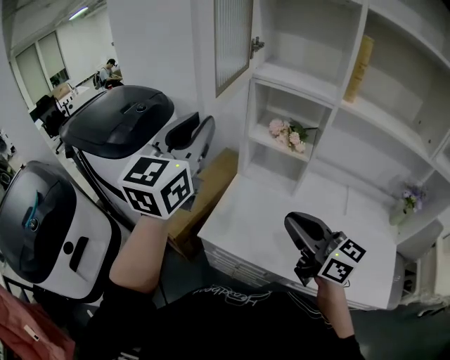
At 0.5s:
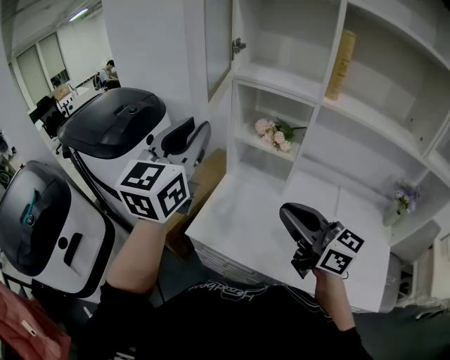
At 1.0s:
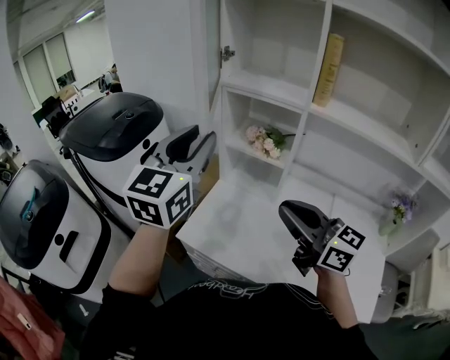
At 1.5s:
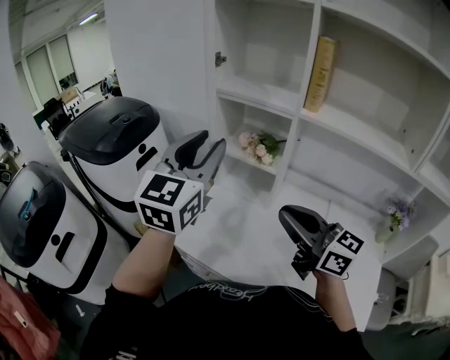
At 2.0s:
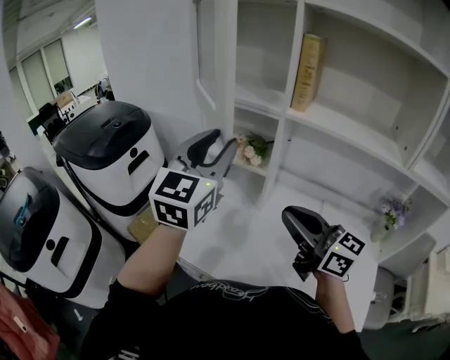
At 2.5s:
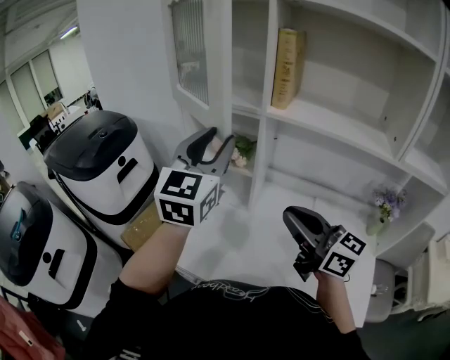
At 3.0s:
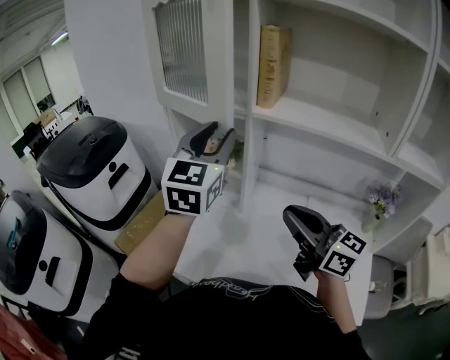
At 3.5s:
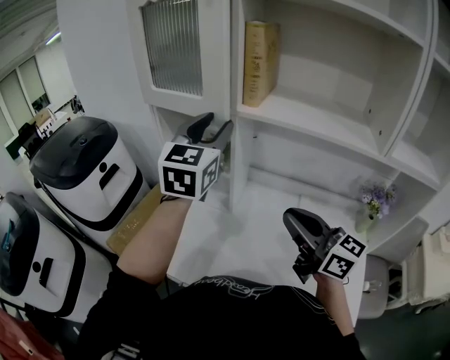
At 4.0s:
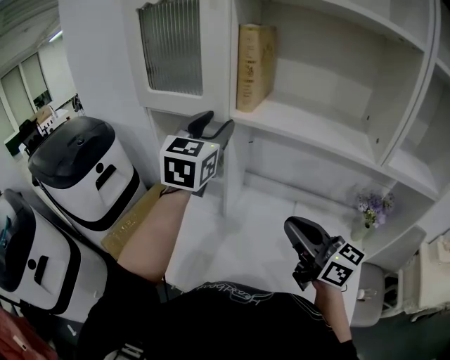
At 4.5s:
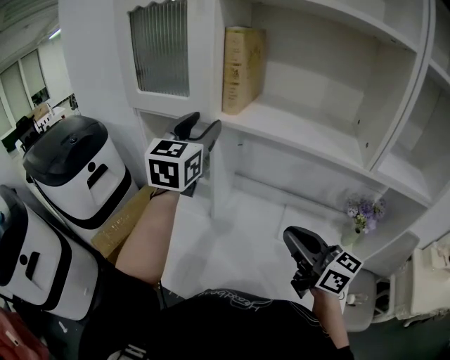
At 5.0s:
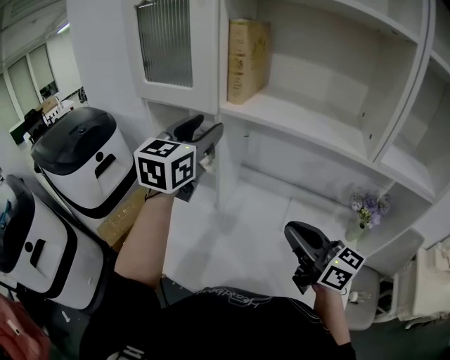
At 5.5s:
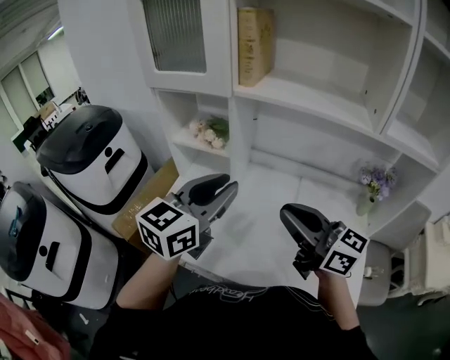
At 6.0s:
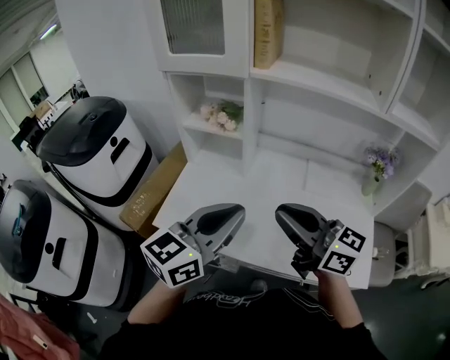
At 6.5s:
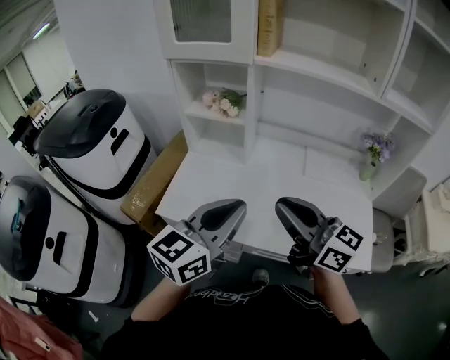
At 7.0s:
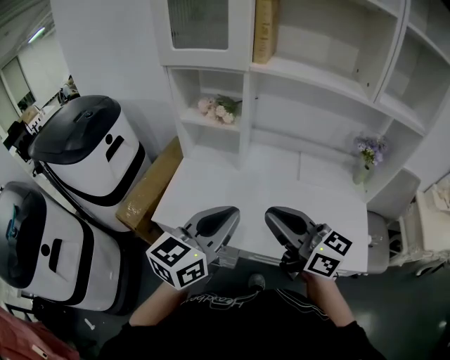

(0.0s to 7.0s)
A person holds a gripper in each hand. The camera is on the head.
0.0s - 2.0s: Both grippers travel together to the right, about 20 cm.
2.0s - 3.5s: The right gripper heads to the right, covering roughly 10 cm; the left gripper is displaced to the right and forward by about 15 cm.
3.5s - 5.0s: The right gripper moves to the right, some 5 cm.
5.0s - 7.0s: The left gripper goes some 35 cm backward and downward, turns by approximately 30 degrees, and closes up. Meanwhile the right gripper moves to the left and backward, roughly 25 cm.

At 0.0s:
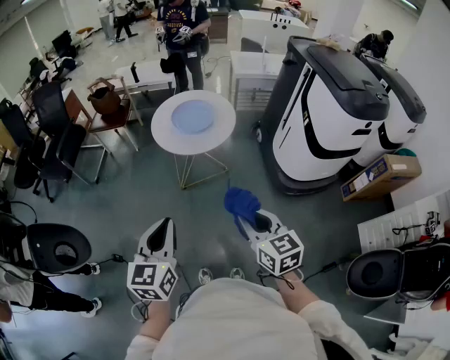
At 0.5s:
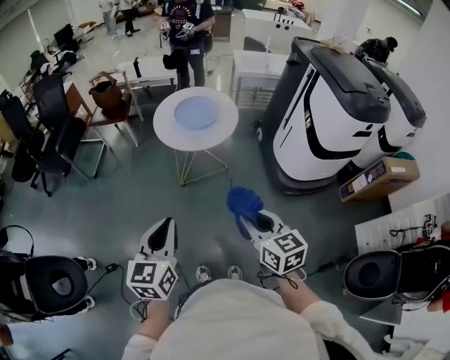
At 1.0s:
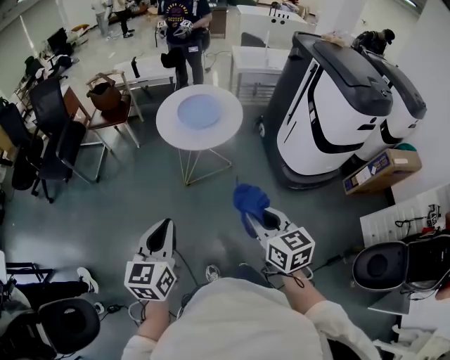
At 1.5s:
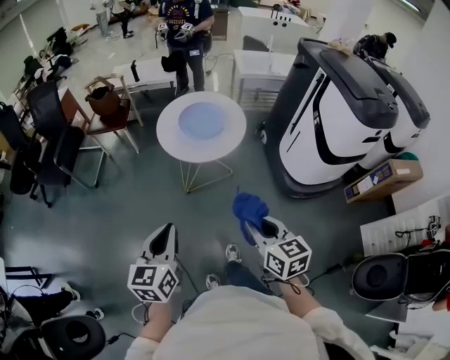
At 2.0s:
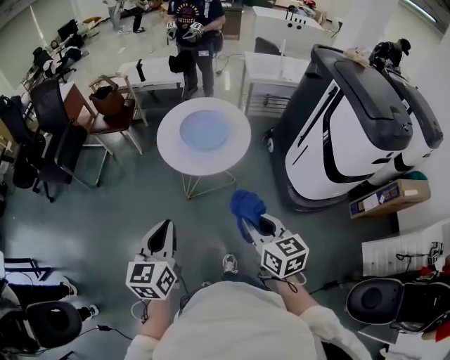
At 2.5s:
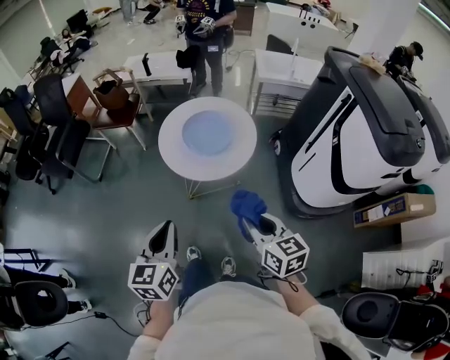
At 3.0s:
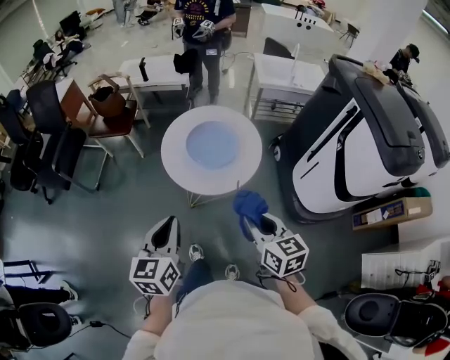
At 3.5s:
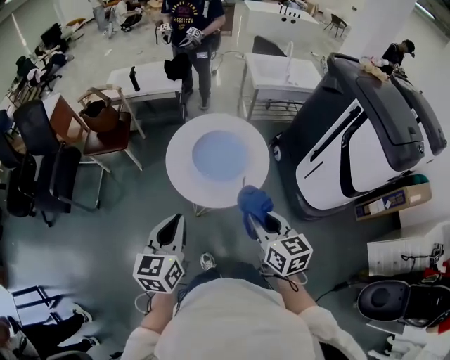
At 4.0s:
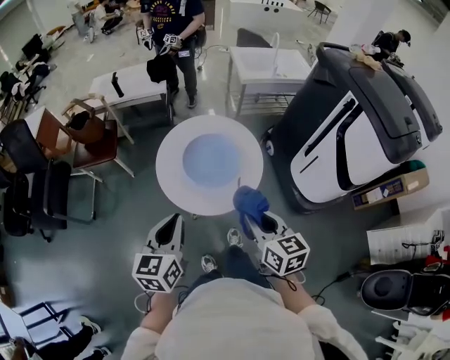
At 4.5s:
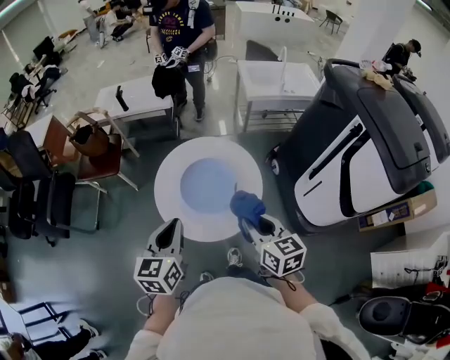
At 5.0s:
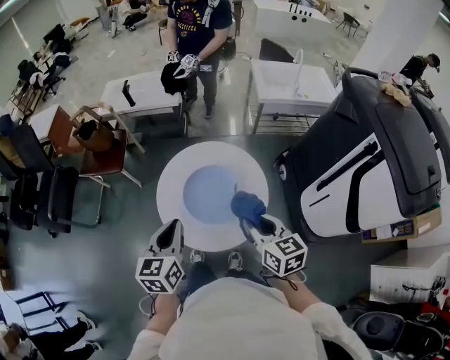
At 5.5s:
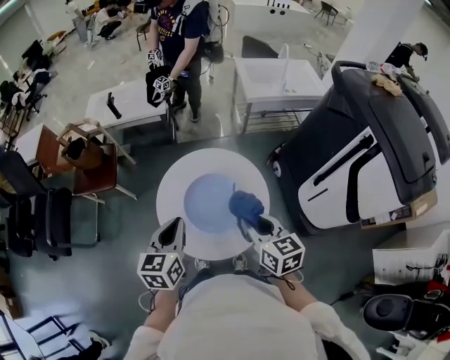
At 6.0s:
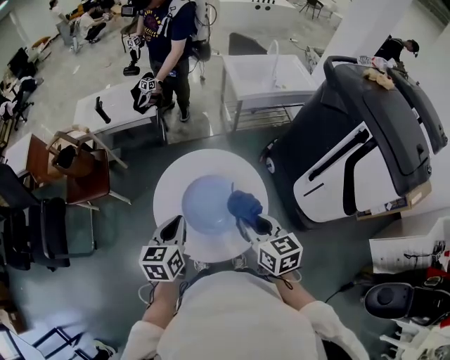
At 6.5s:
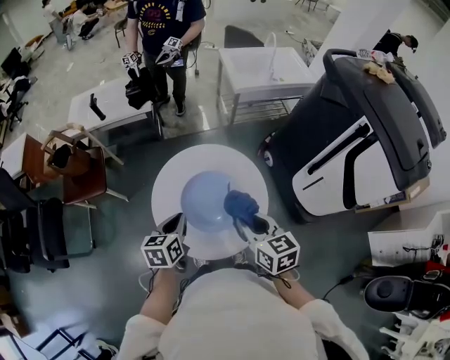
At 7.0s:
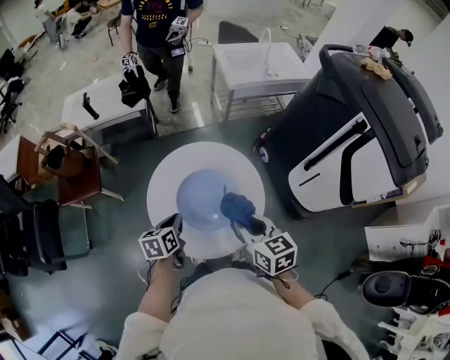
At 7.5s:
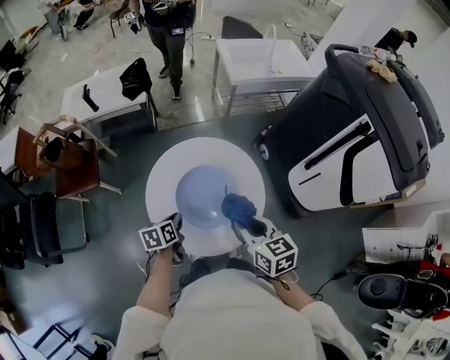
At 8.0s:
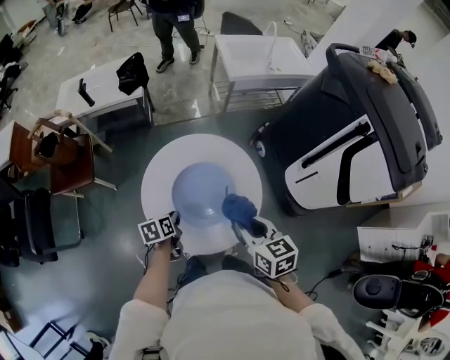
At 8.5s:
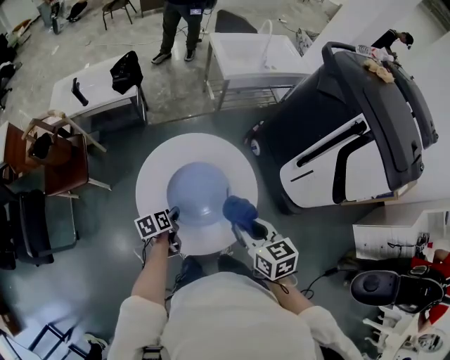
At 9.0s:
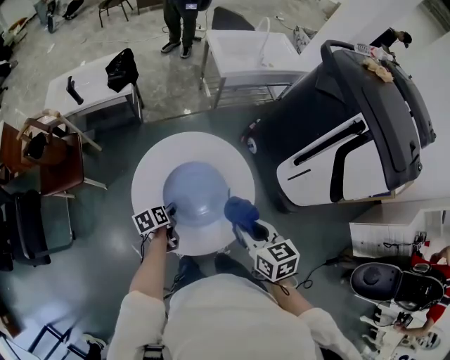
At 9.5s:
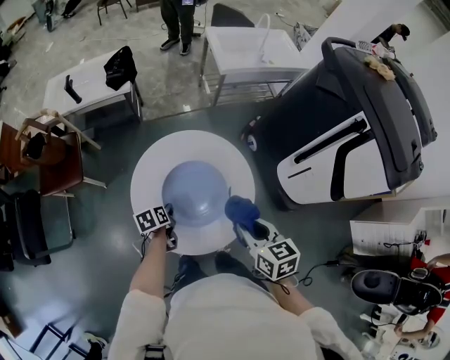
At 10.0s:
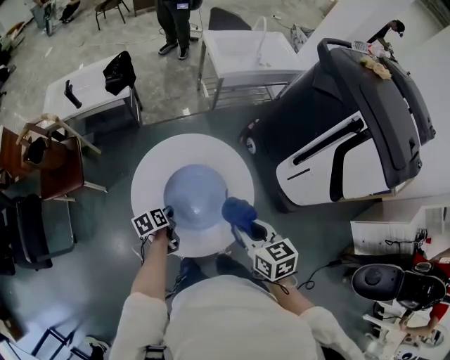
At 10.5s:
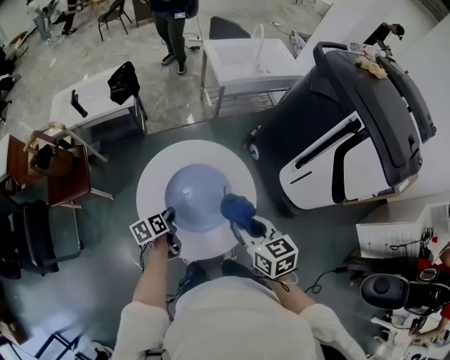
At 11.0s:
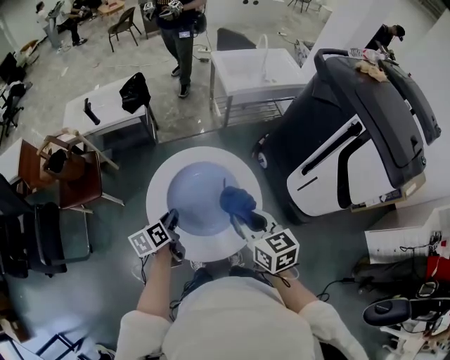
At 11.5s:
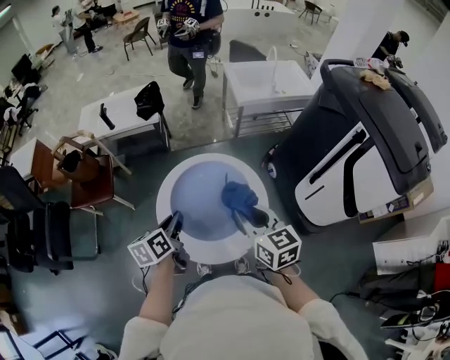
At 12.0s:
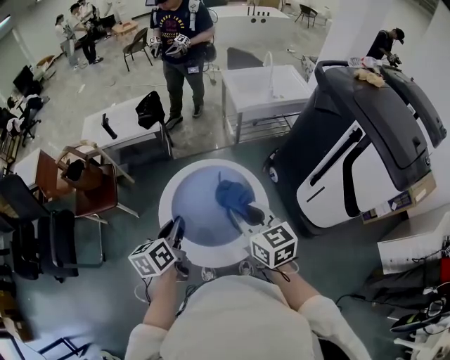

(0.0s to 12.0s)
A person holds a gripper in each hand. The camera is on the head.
0.0s - 2.0s: Both grippers travel together forward, about 15 cm.
2.0s - 4.0s: Both grippers travel together forward, some 25 cm.
4.0s - 6.0s: Both grippers travel together forward, some 20 cm.
6.0s - 8.0s: The left gripper goes approximately 20 cm downward, and changes its angle by roughly 30 degrees.
8.0s - 10.0s: The left gripper opens and closes again.
10.0s - 12.0s: The right gripper heads upward, covering approximately 10 cm, and changes its angle by approximately 20 degrees. Meanwhile the left gripper is displaced upward by about 25 cm, and changes its angle by about 30 degrees.

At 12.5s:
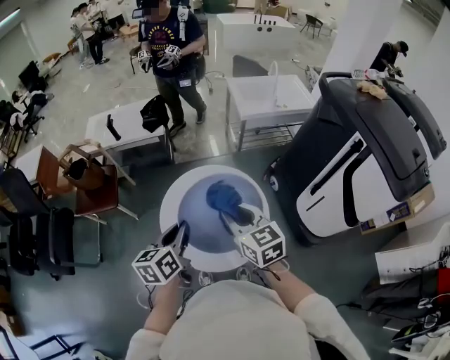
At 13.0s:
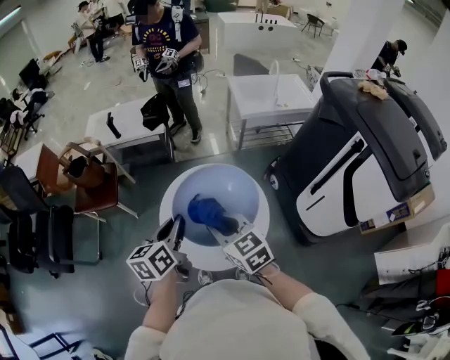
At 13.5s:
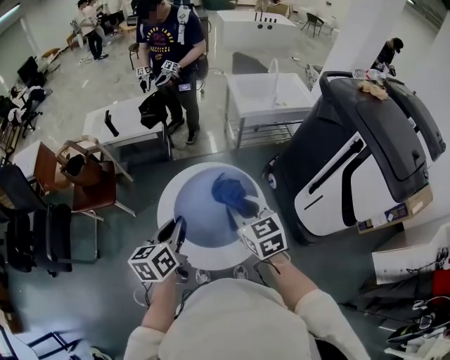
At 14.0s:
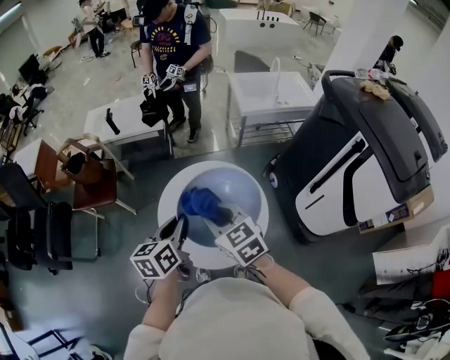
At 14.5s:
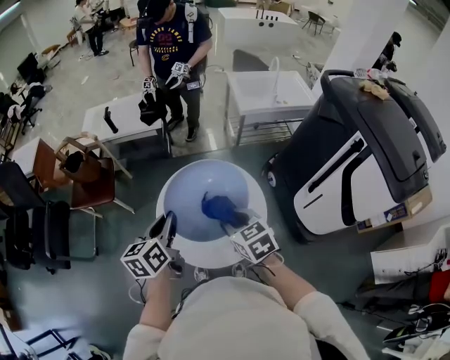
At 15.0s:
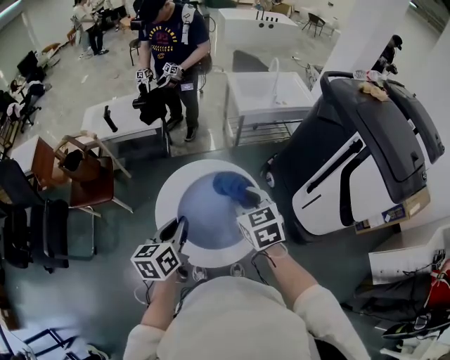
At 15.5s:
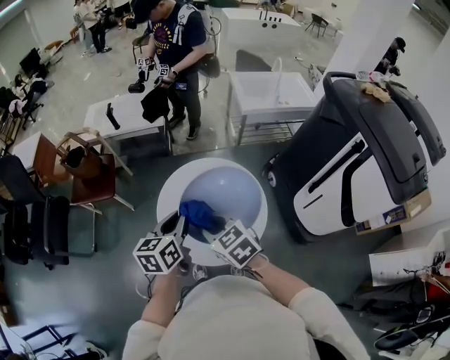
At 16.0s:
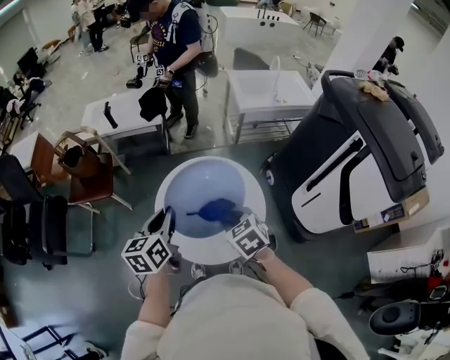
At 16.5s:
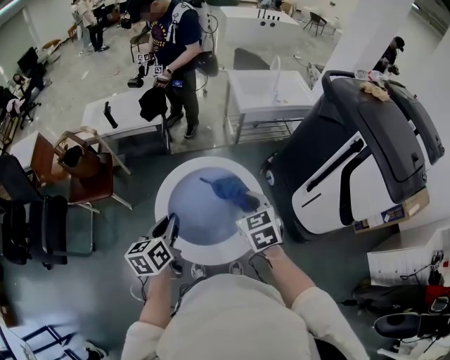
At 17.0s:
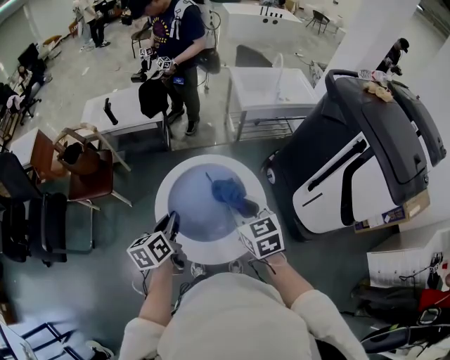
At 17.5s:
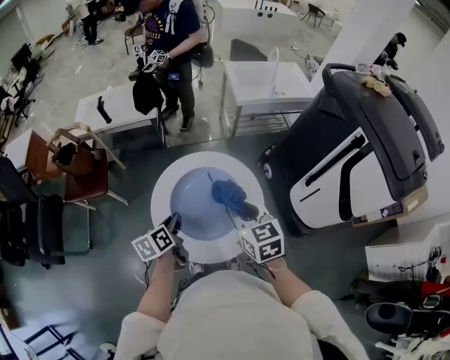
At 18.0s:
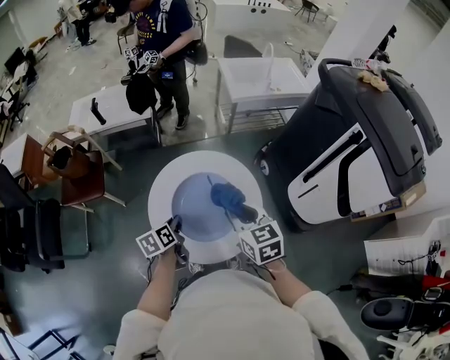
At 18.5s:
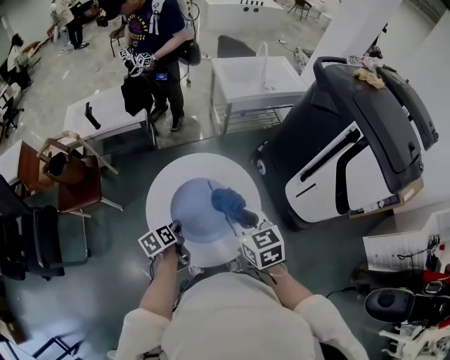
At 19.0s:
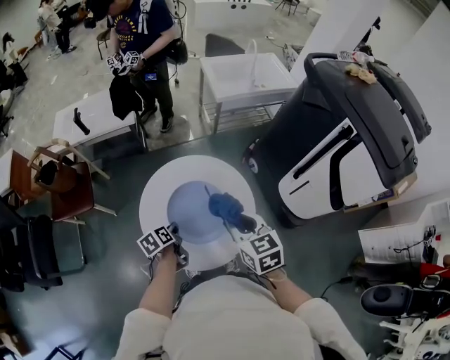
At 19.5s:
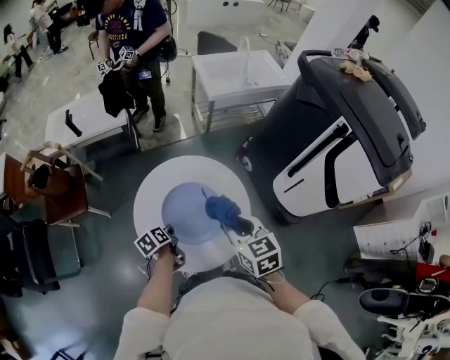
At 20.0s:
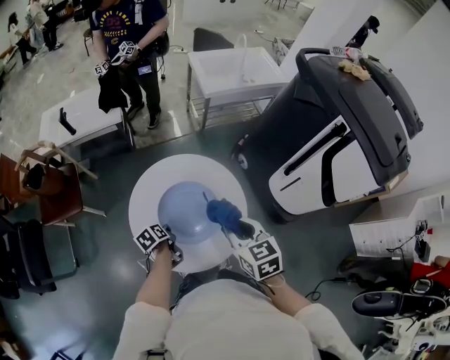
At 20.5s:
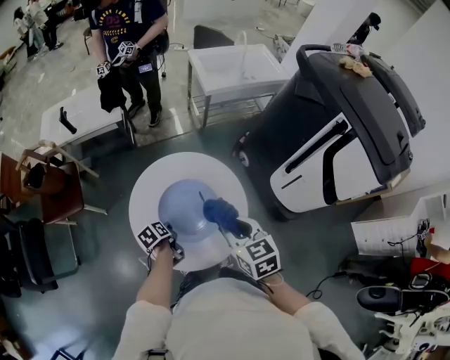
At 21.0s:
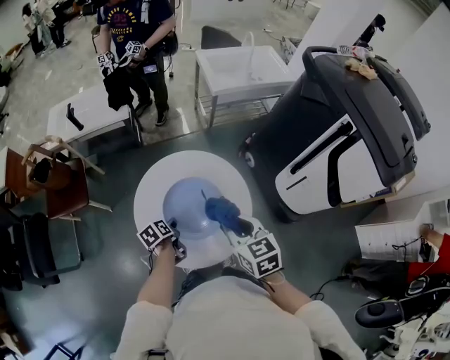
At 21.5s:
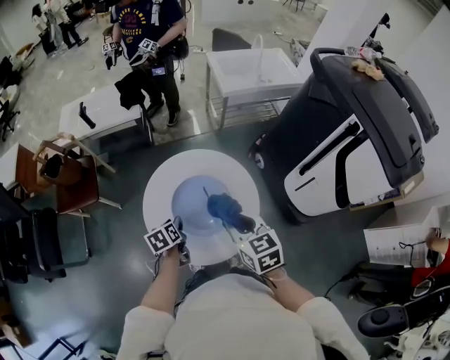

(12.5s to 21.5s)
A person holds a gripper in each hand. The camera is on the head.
12.5s - 14.5s: The right gripper swings left and right, roughly 10 cm each way, with 3 reversals, and turns by about 20 degrees.
14.5s - 17.0s: The right gripper moves left and right over roughly 10 cm, changing direction 2 times. Meanwhile the left gripper is displaced downward by some 5 cm.
17.0s - 19.5s: The left gripper is displaced downward by some 20 cm, and turns by about 30 degrees.
19.5s - 21.5s: The left gripper opens up.
